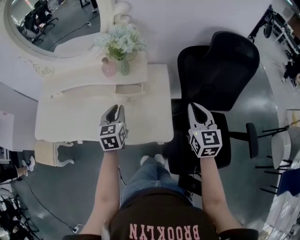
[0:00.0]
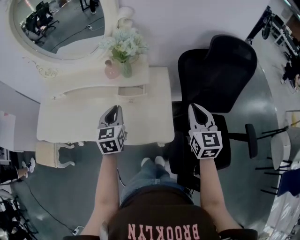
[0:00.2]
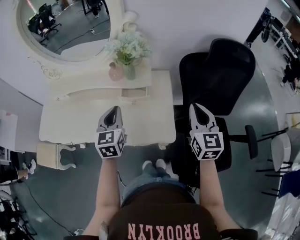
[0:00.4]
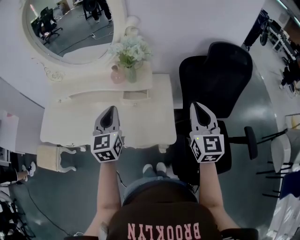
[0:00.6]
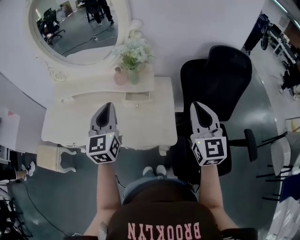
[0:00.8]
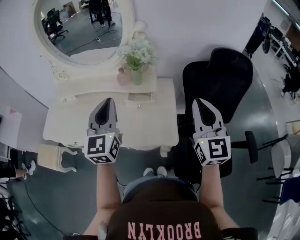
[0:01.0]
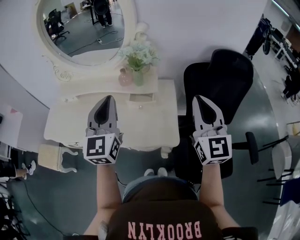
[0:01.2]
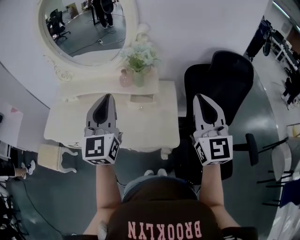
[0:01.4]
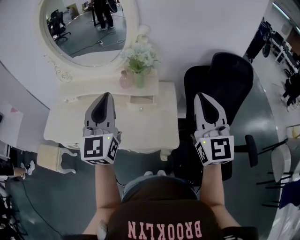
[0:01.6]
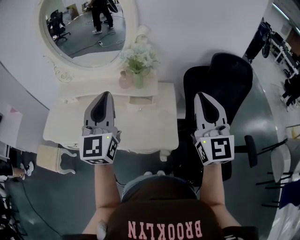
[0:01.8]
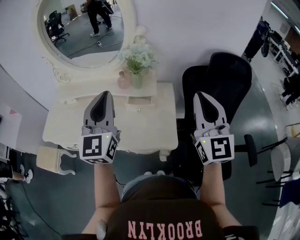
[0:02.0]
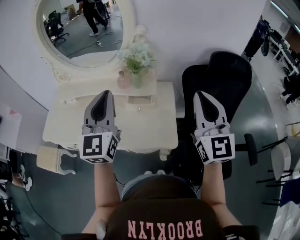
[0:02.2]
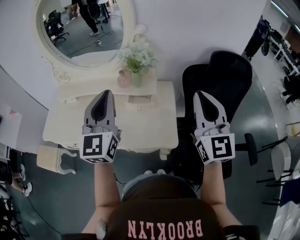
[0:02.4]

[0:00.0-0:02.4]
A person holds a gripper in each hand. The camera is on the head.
0:00.0 to 0:01.2: Both grippers travel together upward, approximately 20 cm. The left gripper tilts its fingers roughly 30 degrees upward; the right gripper turns by some 20 degrees.
0:01.2 to 0:02.4: The grippers make only small movements.

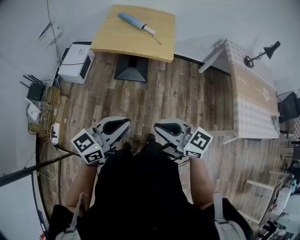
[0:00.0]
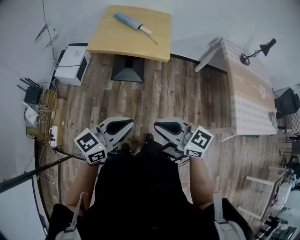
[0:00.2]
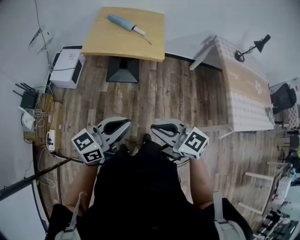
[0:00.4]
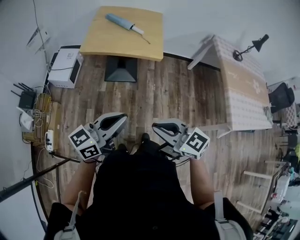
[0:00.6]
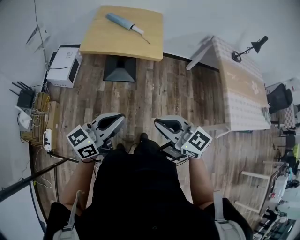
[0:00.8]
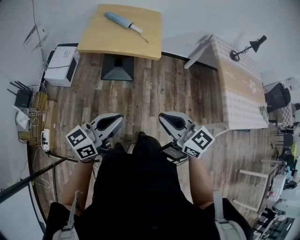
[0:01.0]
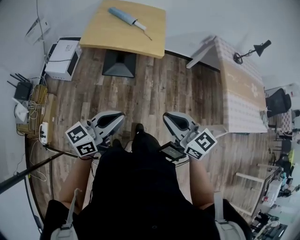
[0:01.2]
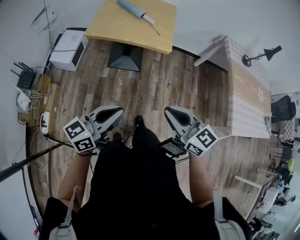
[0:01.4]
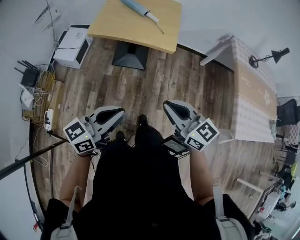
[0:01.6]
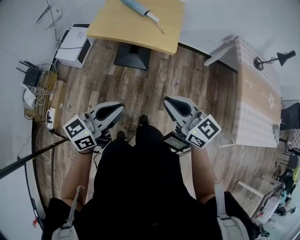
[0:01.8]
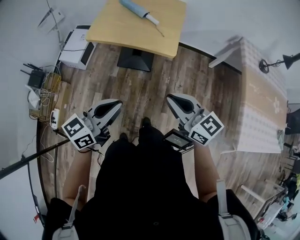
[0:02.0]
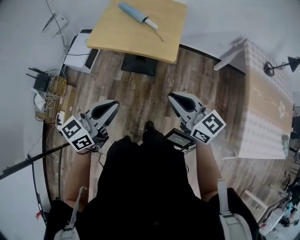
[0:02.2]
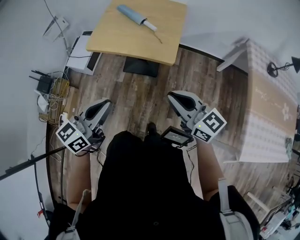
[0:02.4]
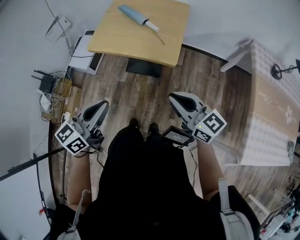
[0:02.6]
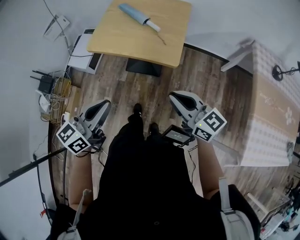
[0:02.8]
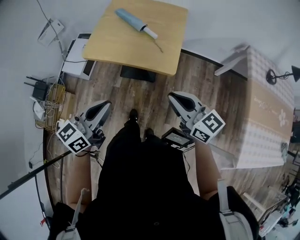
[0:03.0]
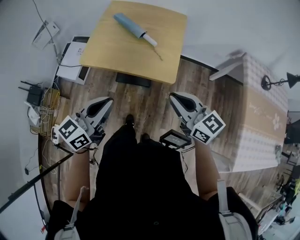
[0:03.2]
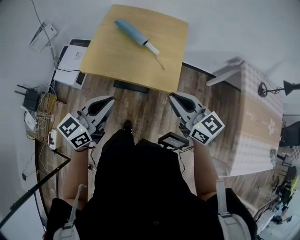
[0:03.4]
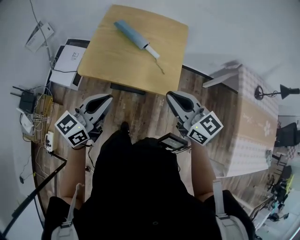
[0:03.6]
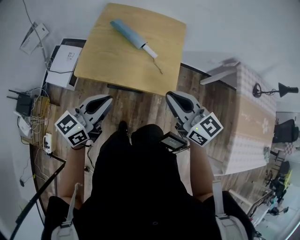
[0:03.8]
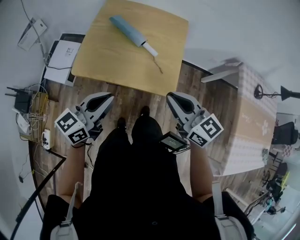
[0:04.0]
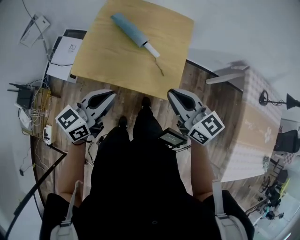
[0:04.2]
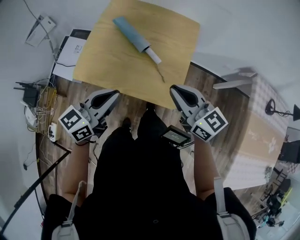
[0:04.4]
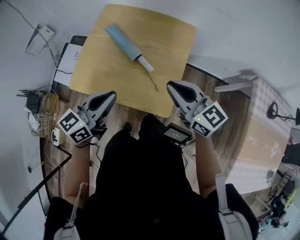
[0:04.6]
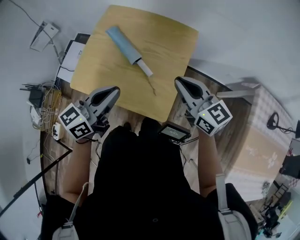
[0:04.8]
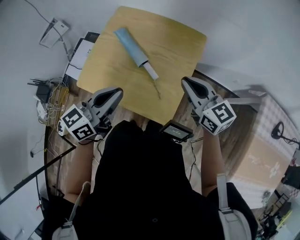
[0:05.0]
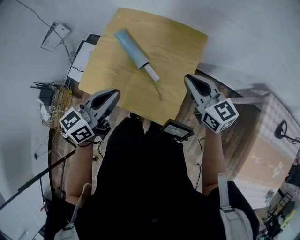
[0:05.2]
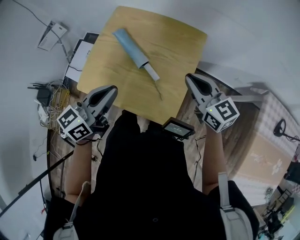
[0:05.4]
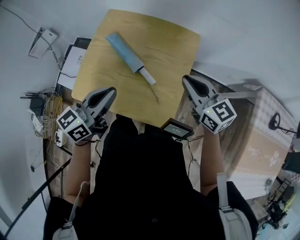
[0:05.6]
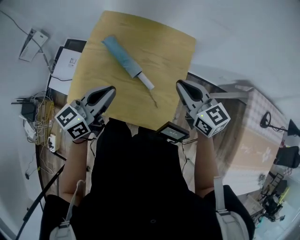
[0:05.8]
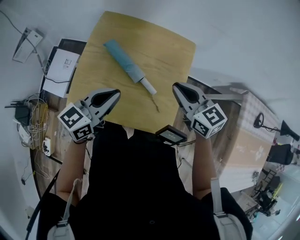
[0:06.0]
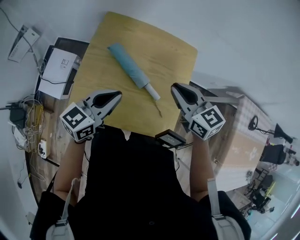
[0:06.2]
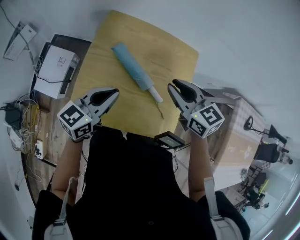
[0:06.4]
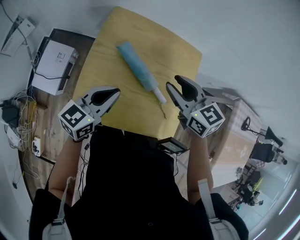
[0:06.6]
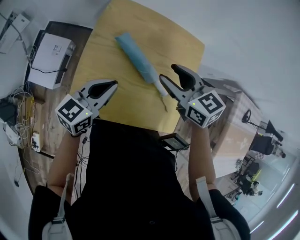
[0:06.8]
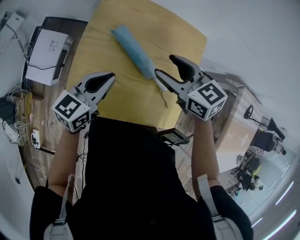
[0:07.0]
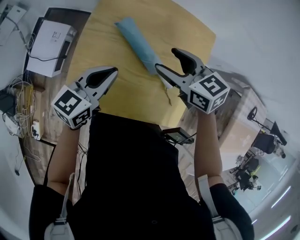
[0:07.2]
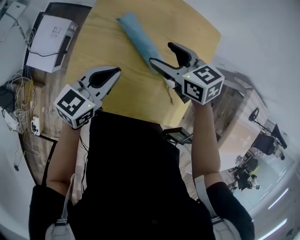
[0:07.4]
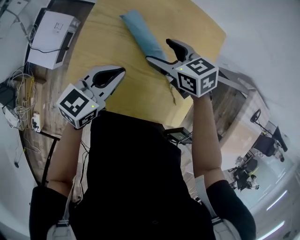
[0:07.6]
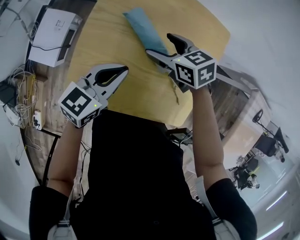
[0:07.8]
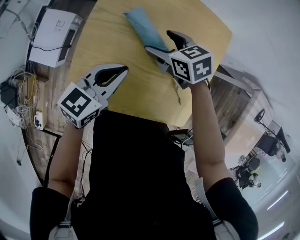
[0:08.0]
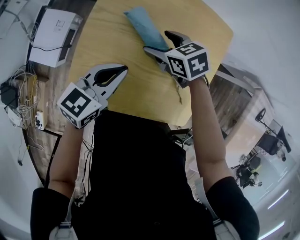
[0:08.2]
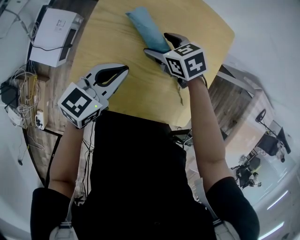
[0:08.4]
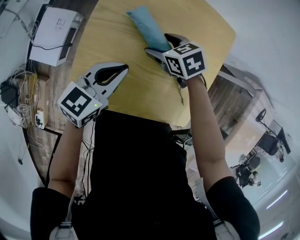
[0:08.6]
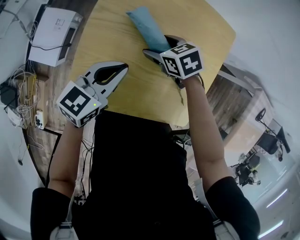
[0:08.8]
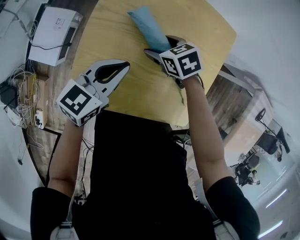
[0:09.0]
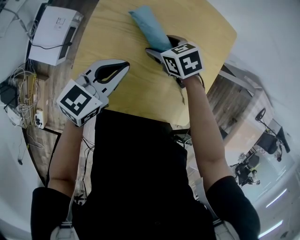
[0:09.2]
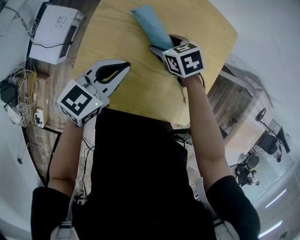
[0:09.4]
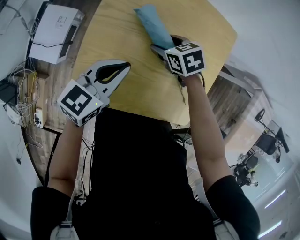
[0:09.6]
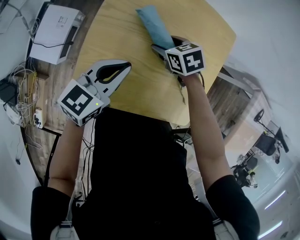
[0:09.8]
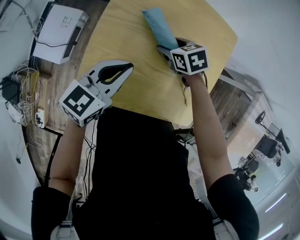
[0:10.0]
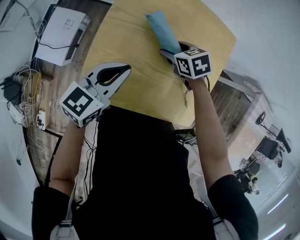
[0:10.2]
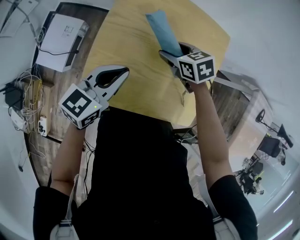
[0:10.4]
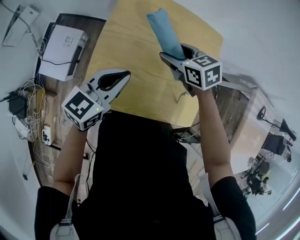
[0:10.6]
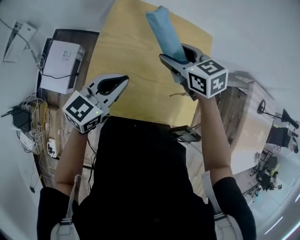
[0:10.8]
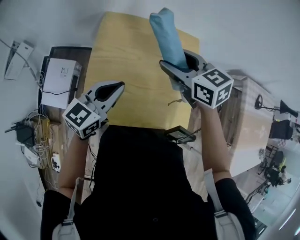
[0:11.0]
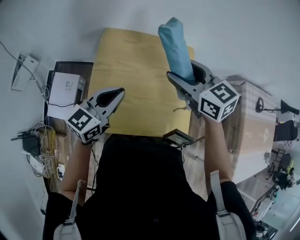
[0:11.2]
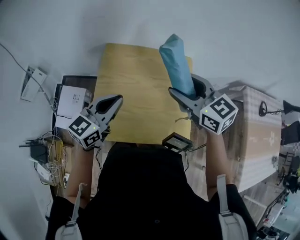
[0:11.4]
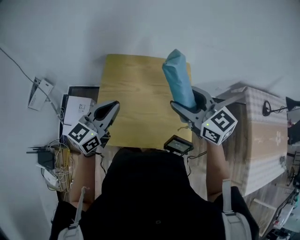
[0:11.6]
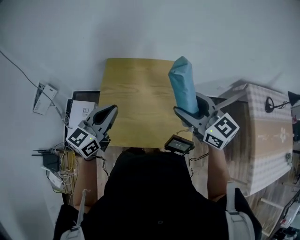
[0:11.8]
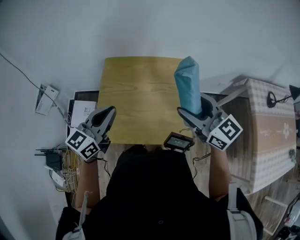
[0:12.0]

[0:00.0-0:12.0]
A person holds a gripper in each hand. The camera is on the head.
0:00.0 to 0:01.6: The right gripper heads forward, covering approximately 10 cm.
0:01.6 to 0:03.0: The right gripper travels forward and to the right by some 20 cm; the left gripper goes roughly 20 cm forward.
0:03.0 to 0:04.4: The two grippers go about 25 cm forward.
0:04.4 to 0:06.0: Both grippers move forward, roughly 15 cm.
0:06.0 to 0:07.6: The right gripper moves to the left, downward and forward, about 25 cm, turns by some 30 degrees, and opens up, while the left gripper heads downward, to the left and forward, covering approximately 15 cm.
0:07.6 to 0:09.0: The right gripper heads downward, covering approximately 10 cm.
0:09.0 to 0:10.4: The left gripper ends up approximately 5 cm from where it was; the right gripper moves upward, some 5 cm.
0:10.4 to 0:12.0: The left gripper heads upward, covering about 20 cm. The right gripper is displaced upward, backward and to the right by some 40 cm, and points its fingers about 50 degrees further upward.

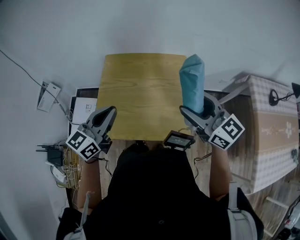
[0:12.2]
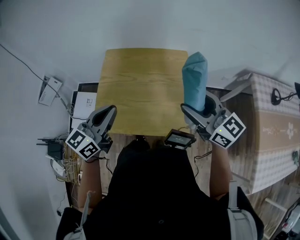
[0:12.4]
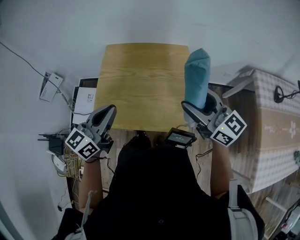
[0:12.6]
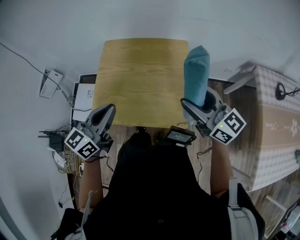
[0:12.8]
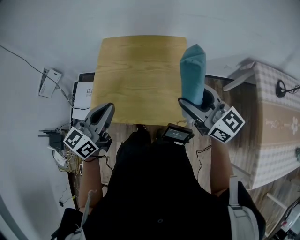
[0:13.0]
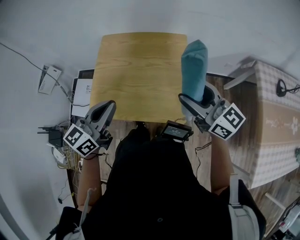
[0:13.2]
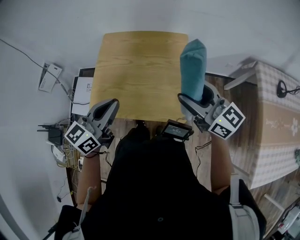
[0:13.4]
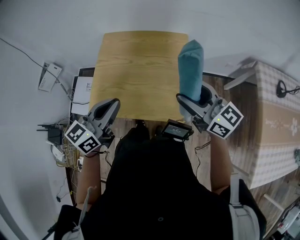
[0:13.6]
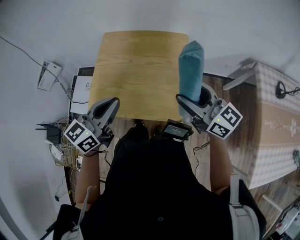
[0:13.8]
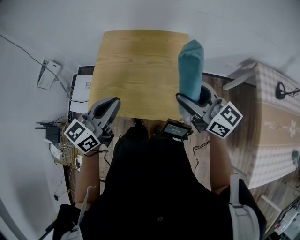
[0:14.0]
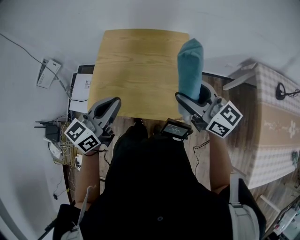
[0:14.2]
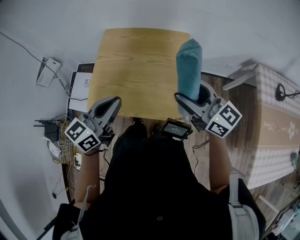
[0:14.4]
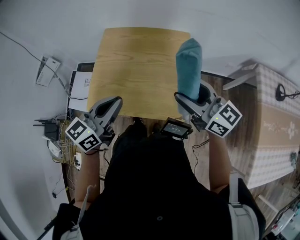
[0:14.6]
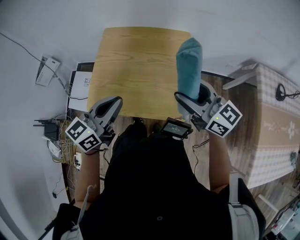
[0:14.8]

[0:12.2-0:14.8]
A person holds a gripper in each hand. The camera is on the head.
0:12.2 to 0:13.4: The left gripper is displaced to the right and backward by approximately 10 cm. Meanwhile the right gripper is displaced to the right by roughly 5 cm.
0:13.4 to 0:14.8: The grippers stay close to where they were, moving slightly.

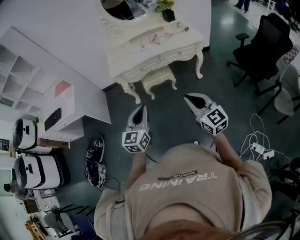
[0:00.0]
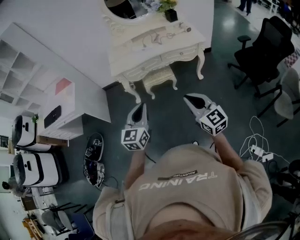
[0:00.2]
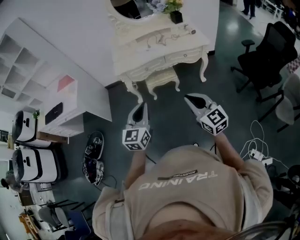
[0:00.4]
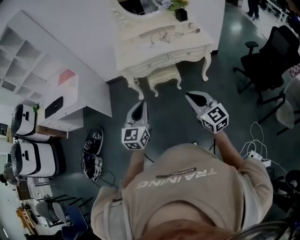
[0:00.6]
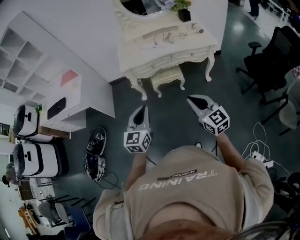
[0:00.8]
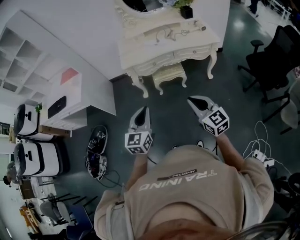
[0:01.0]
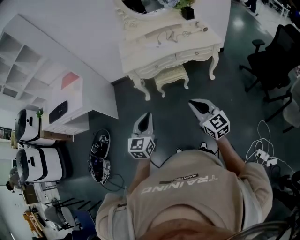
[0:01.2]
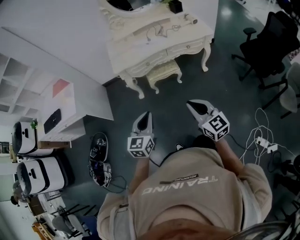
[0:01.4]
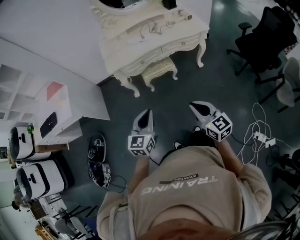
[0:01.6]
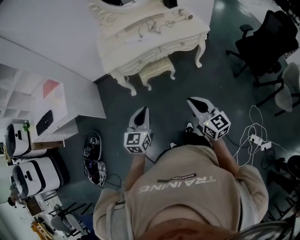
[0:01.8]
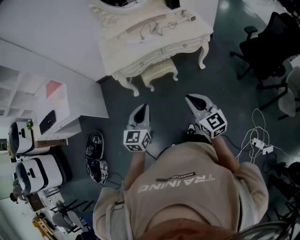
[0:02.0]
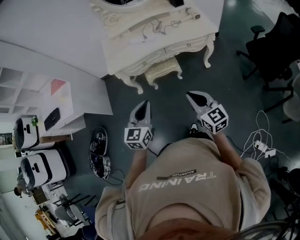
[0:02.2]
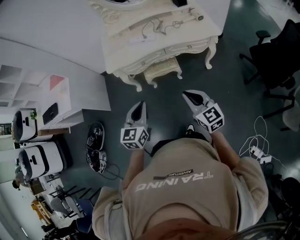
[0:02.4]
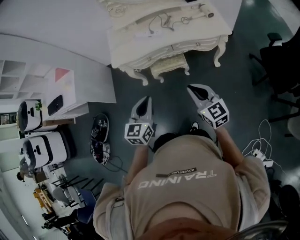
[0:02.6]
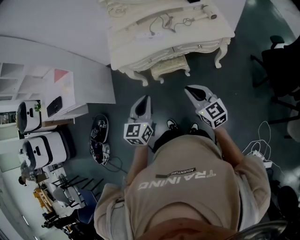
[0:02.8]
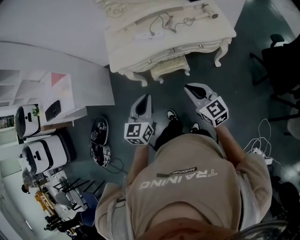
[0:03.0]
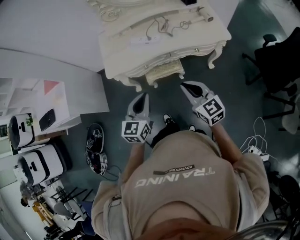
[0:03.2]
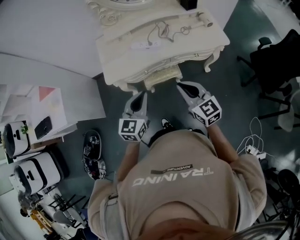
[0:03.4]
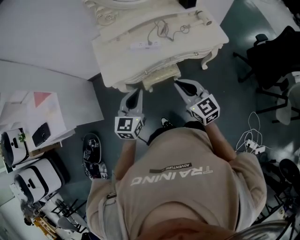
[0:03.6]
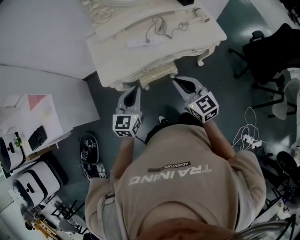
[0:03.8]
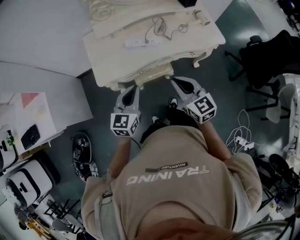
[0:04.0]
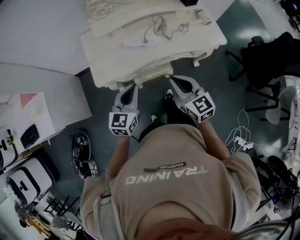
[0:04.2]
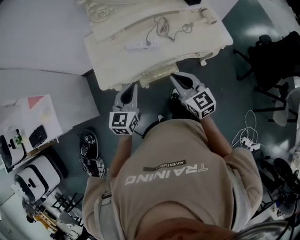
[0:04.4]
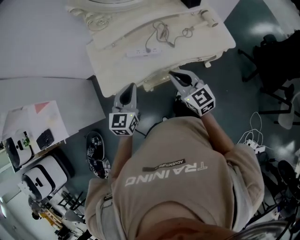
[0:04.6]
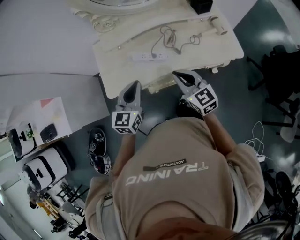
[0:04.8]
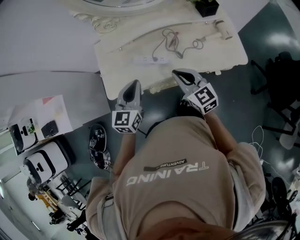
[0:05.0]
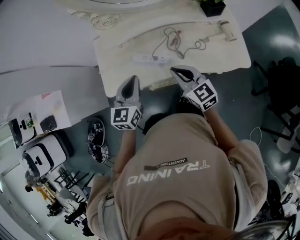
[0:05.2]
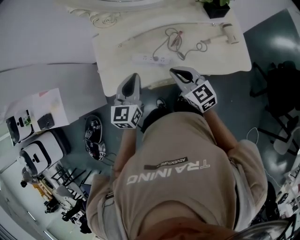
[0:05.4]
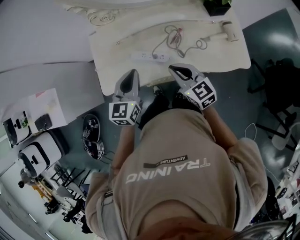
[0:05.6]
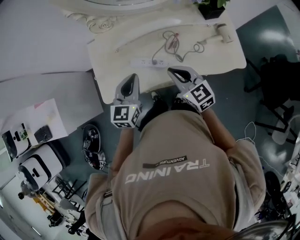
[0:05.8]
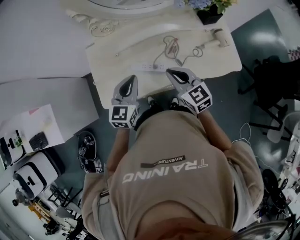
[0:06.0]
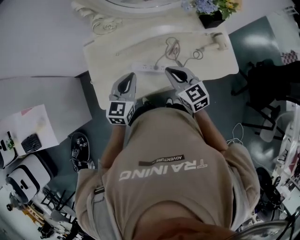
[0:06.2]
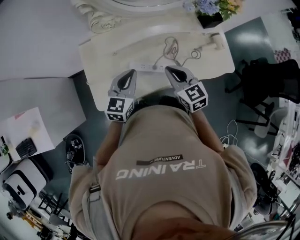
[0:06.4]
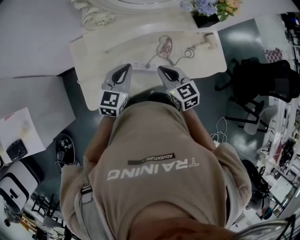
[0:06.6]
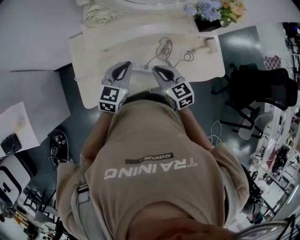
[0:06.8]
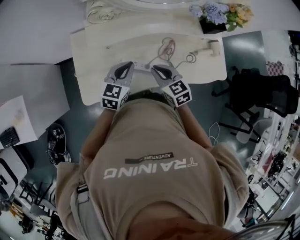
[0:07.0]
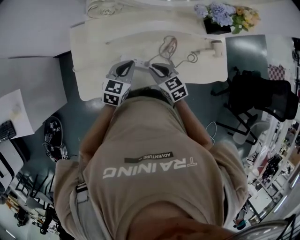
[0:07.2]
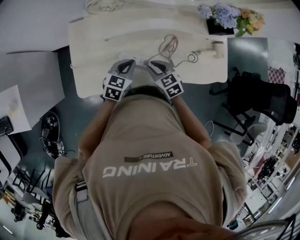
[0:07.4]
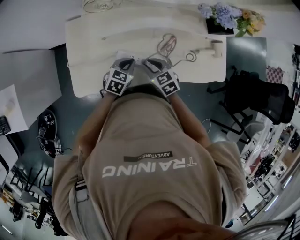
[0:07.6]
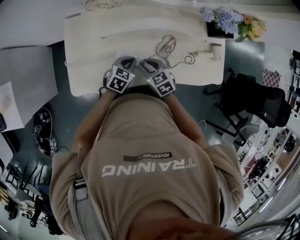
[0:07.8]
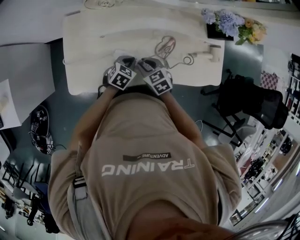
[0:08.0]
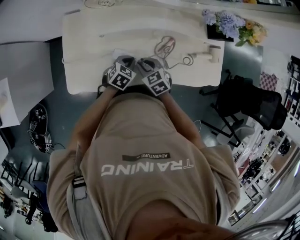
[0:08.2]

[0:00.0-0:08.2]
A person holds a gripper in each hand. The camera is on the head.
0:00.0 to 0:01.6: The right gripper heads downward, forward and to the left, covering approximately 10 cm. Meanwhile the left gripper is displaced forward and downward by approximately 10 cm.
0:01.6 to 0:03.2: The two grippers go about 30 cm forward.
0:03.2 to 0:05.0: The two grippers go some 30 cm forward.
0:05.0 to 0:06.6: The two grippers go approximately 15 cm forward and to the left.
0:06.6 to 0:08.2: Both grippers travel together downward, about 20 cm. The left gripper points its fingers approximately 30 degrees further downward; the right gripper rotates approximately 30 degrees.
